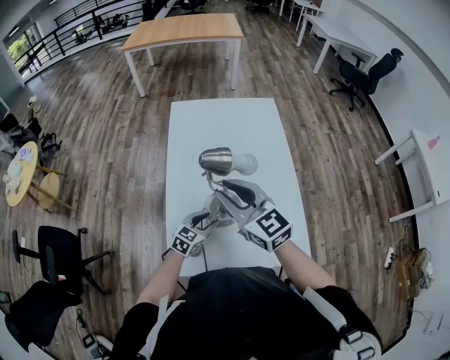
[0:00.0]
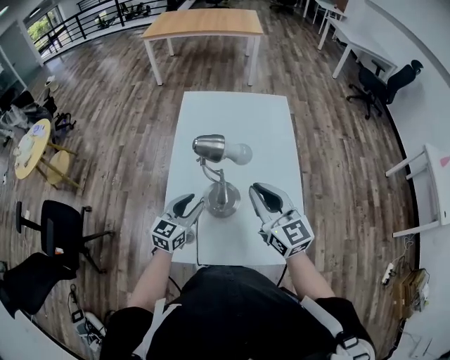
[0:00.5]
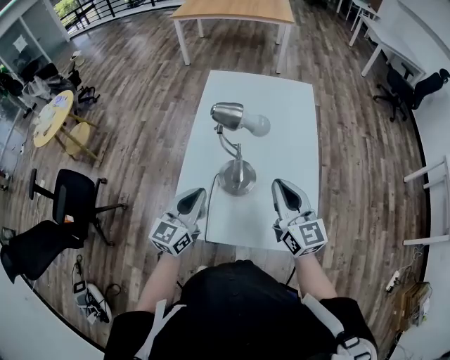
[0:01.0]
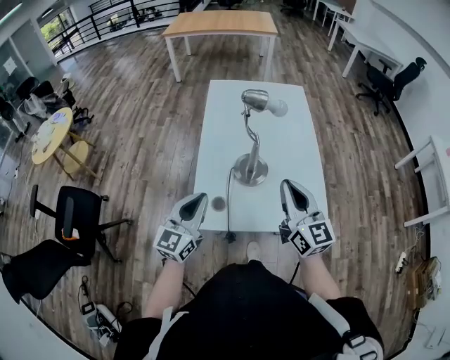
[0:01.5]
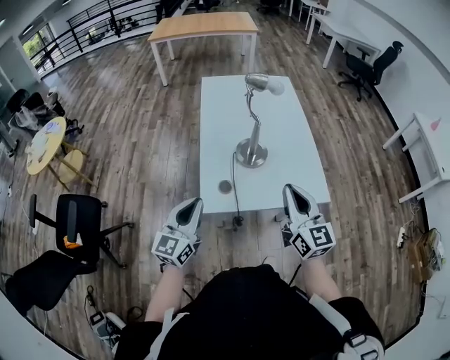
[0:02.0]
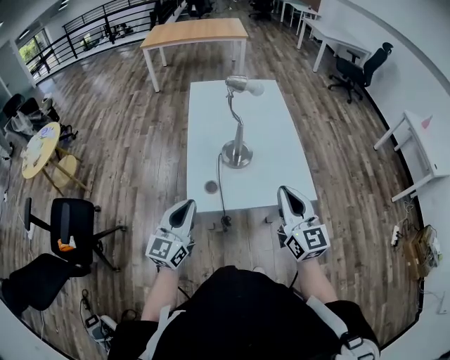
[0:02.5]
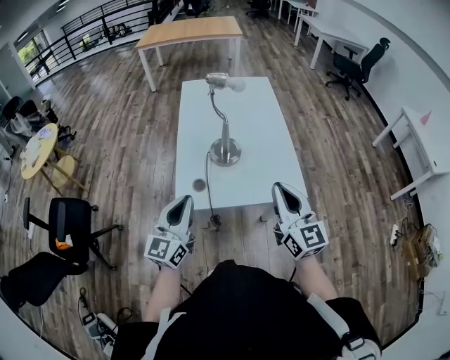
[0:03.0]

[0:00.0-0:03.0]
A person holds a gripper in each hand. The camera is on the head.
0:00.0 to 0:01.5: The left gripper goes approximately 30 cm upward, backward and to the left, tilts its fingers about 30 degrees upward, and closes. The right gripper is displaced backward and to the right by about 15 cm, turns by some 20 degrees, and closes its fingers.
0:01.5 to 0:03.0: Both grippers travel together backward, approximately 10 cm.

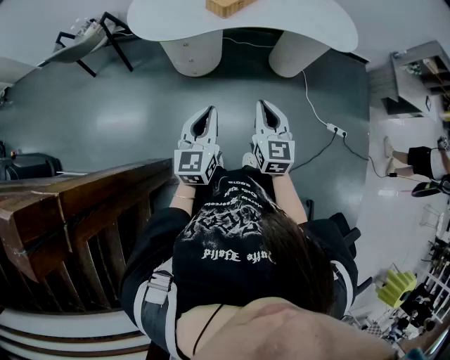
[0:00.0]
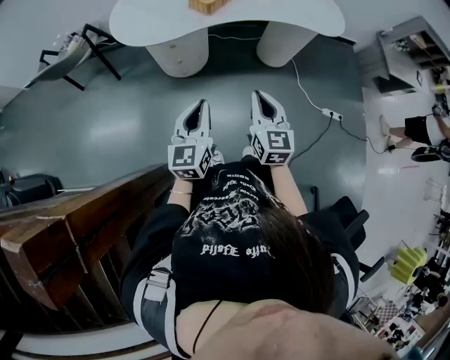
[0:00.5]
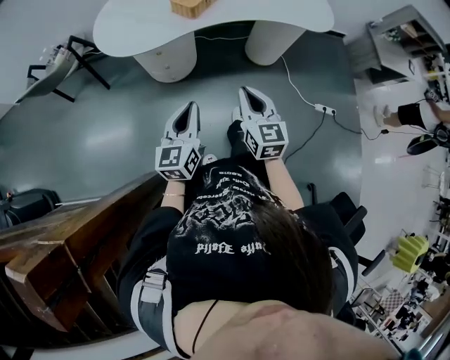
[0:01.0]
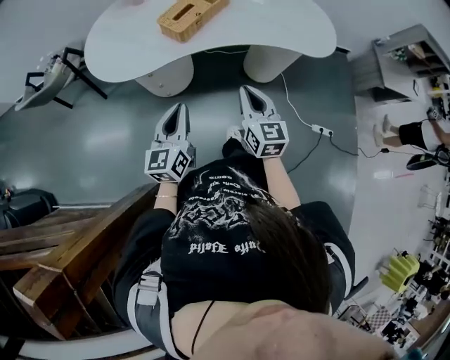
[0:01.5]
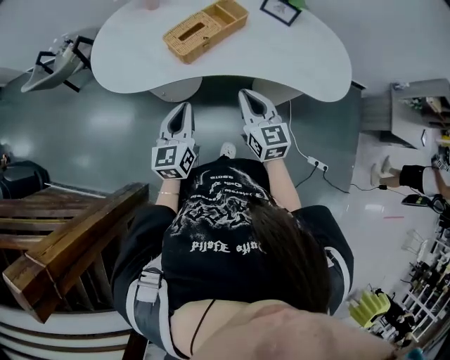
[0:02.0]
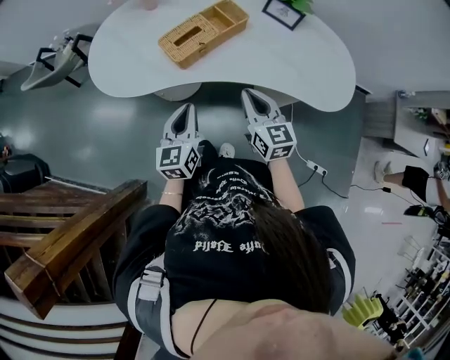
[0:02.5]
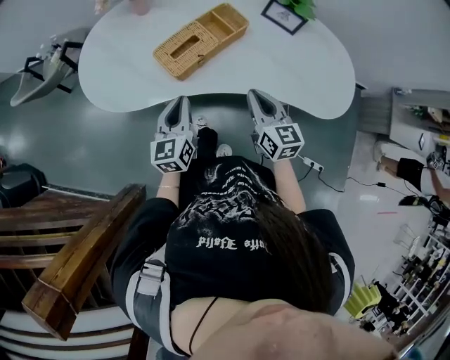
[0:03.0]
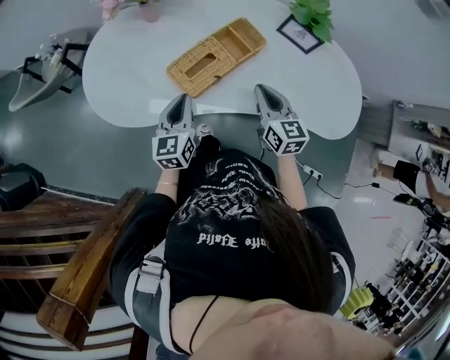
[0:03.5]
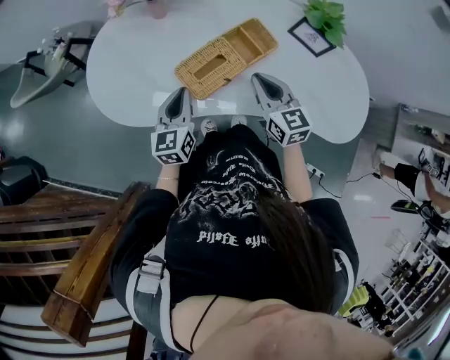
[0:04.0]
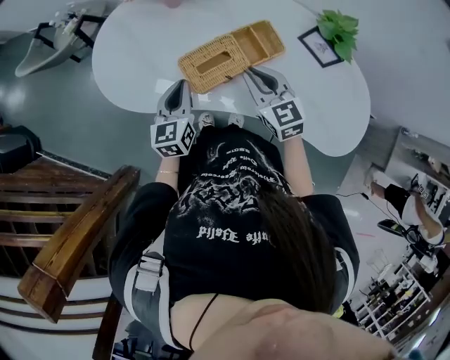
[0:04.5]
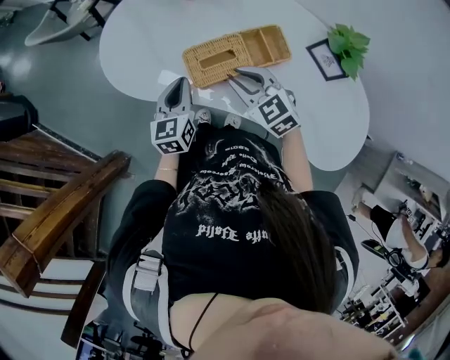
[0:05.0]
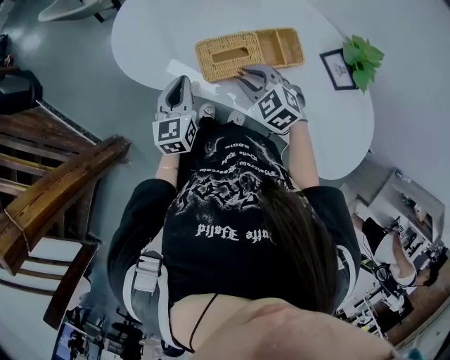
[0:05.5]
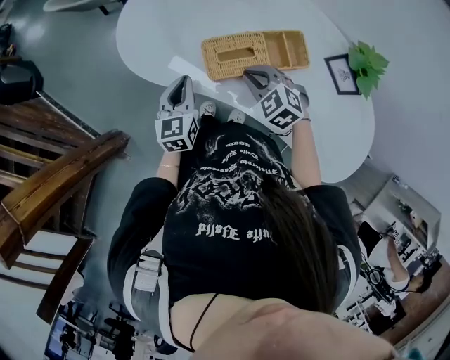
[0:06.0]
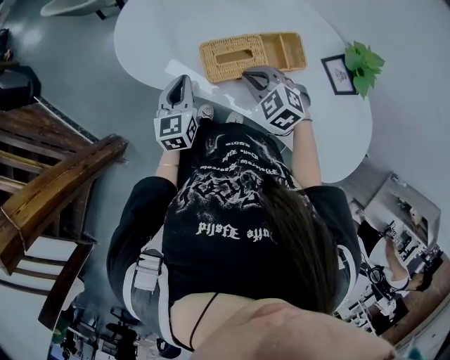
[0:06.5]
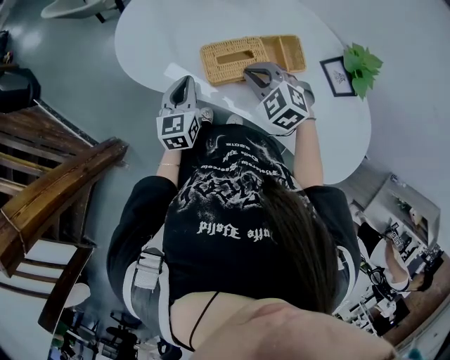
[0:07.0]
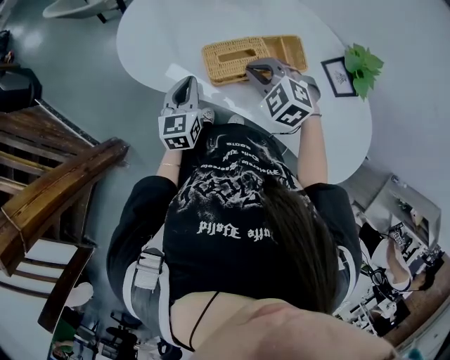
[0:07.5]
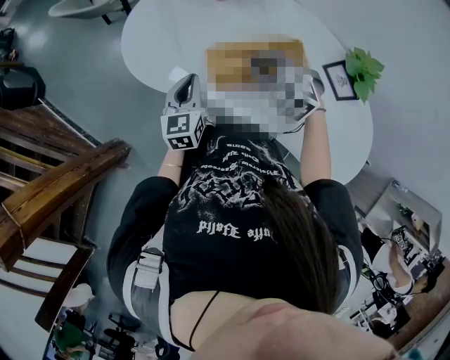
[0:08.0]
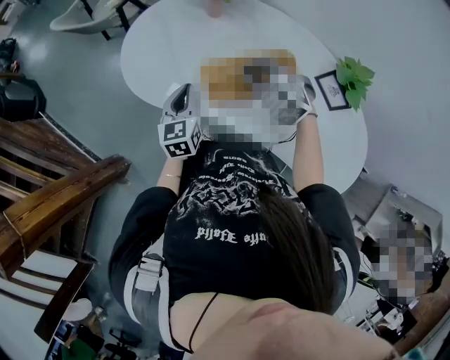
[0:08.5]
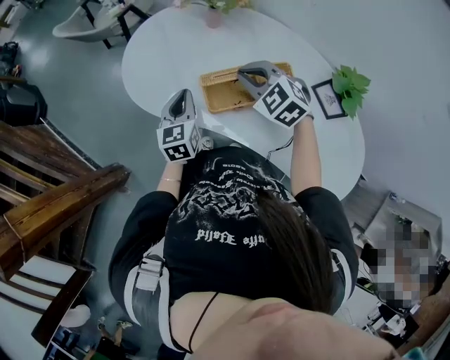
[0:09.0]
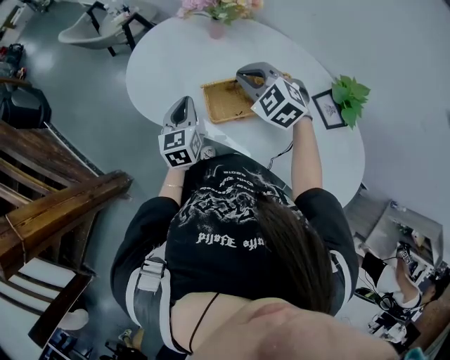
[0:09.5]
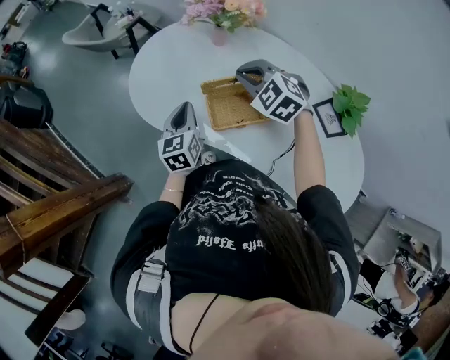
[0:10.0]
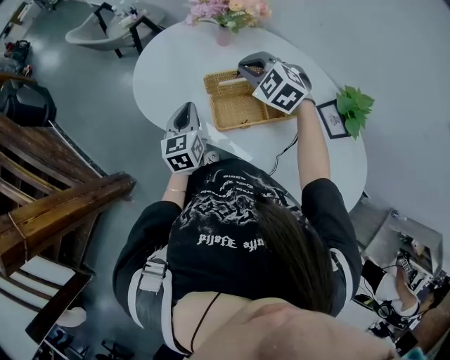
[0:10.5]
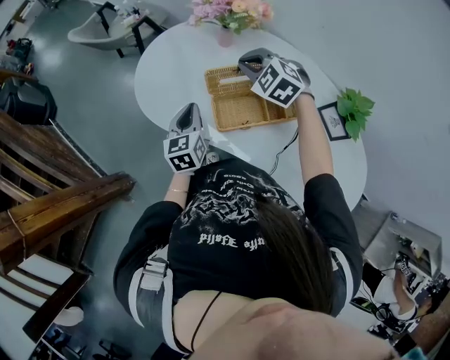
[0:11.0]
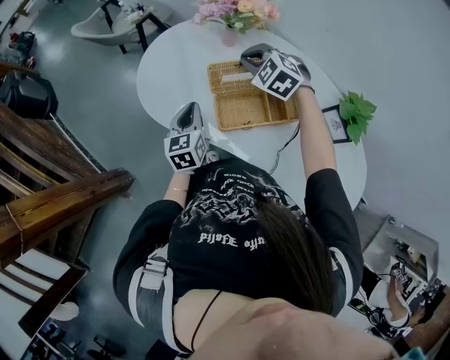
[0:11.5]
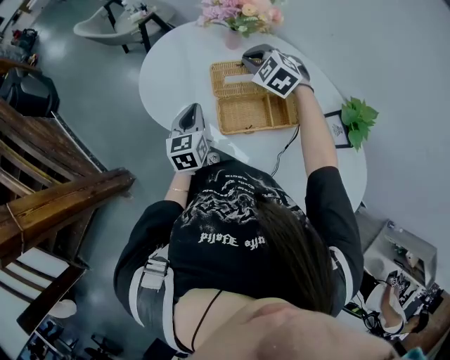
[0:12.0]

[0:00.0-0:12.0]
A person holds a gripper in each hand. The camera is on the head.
0:00.0 to 0:02.0: The two grippers go roughly 35 cm forward.
0:02.0 to 0:04.0: Both grippers travel together forward, about 25 cm.
0:04.0 to 0:06.0: The right gripper shifts by some 10 cm, and swivels some 60 degrees. The left gripper moves about 5 cm, and rotates approximately 30 degrees.
0:06.0 to 0:08.0: The right gripper goes about 10 cm upward.
0:08.0 to 0:10.0: The left gripper changes place by about 5 cm. The right gripper travels forward and upward by about 10 cm.
0:10.0 to 0:12.0: The right gripper heads forward, covering some 10 cm.

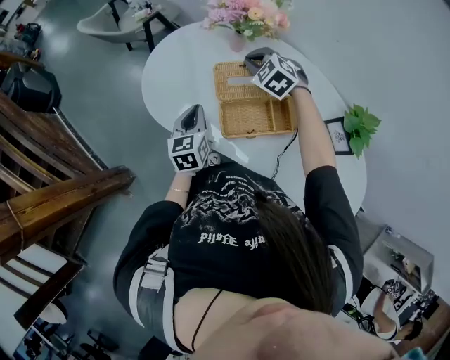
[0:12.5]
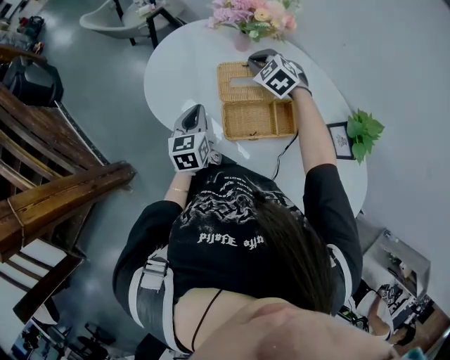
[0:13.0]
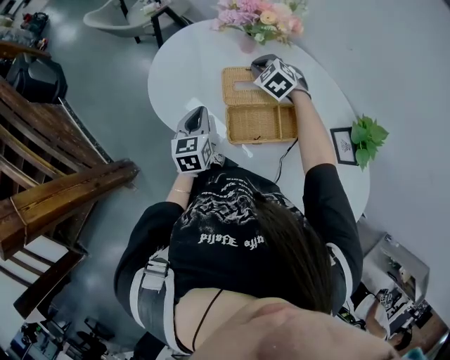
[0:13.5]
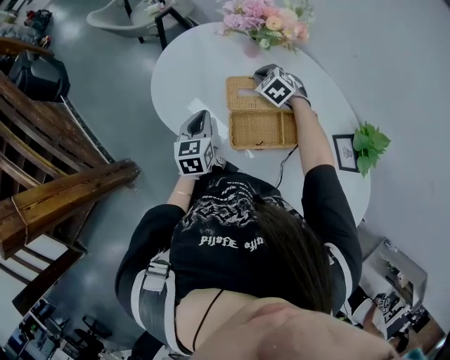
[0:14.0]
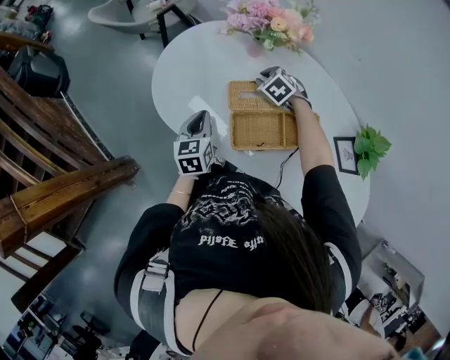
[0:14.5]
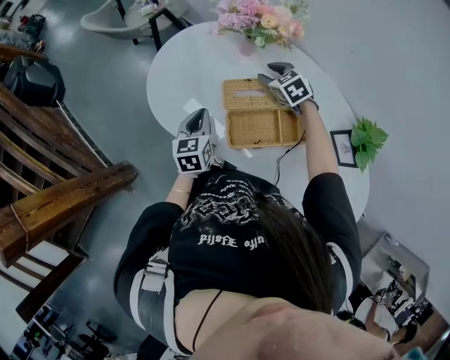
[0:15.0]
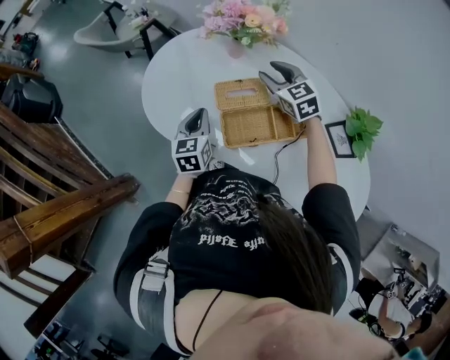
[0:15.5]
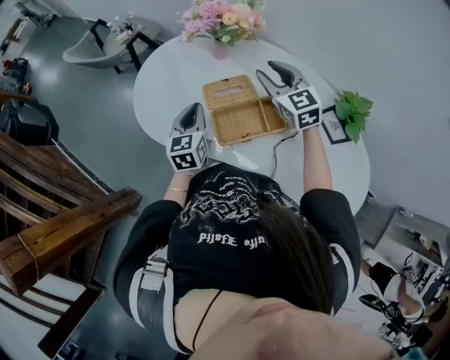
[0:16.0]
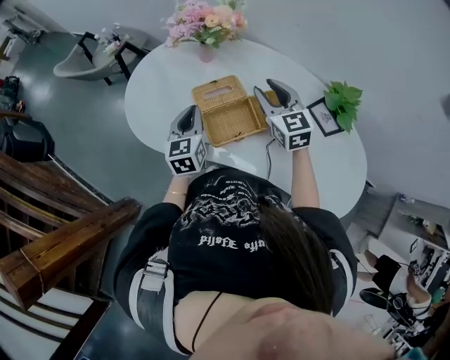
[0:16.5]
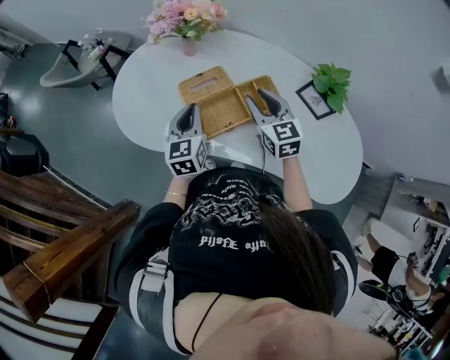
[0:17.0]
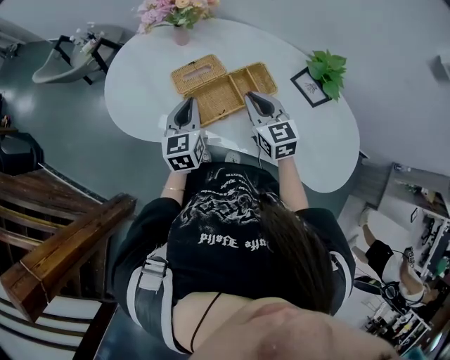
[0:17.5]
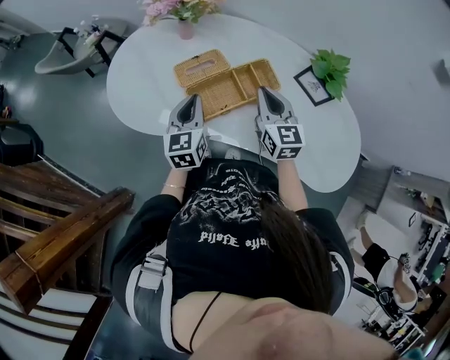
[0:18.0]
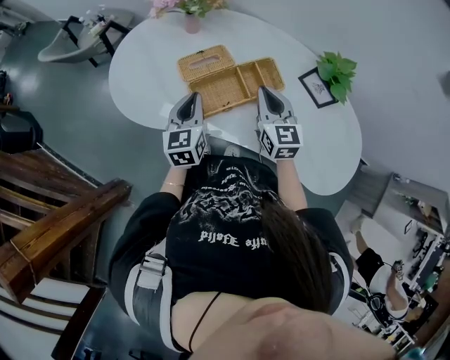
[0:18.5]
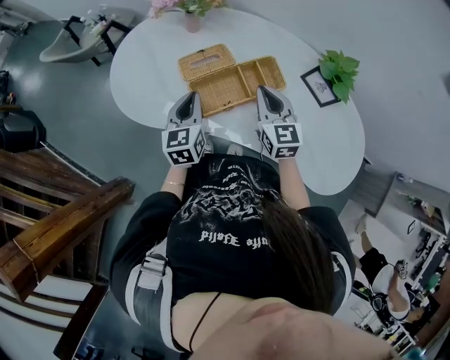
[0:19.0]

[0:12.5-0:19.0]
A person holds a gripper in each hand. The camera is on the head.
0:12.5 to 0:14.5: The right gripper is displaced downward by roughly 15 cm.
0:14.5 to 0:17.0: The right gripper goes roughly 30 cm backward, upward and to the right, and tips its fingers upward by about 40 degrees. Meanwhile the left gripper heads to the right and upward, covering roughly 10 cm, and turns by roughly 20 degrees.
0:17.0 to 0:19.0: The right gripper closes.

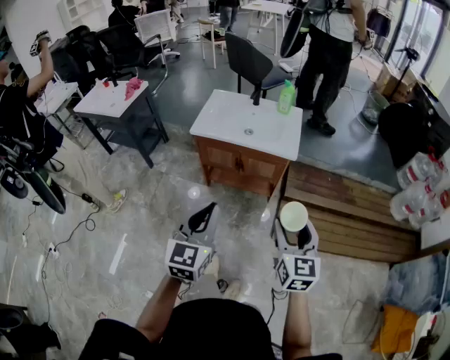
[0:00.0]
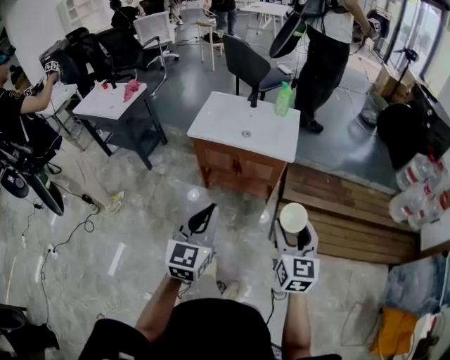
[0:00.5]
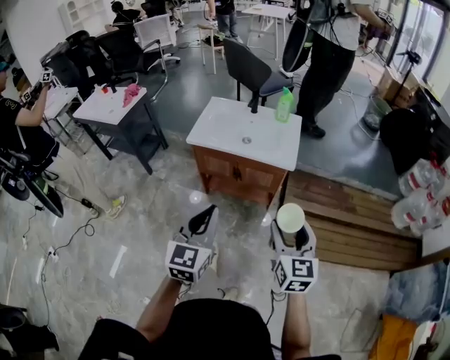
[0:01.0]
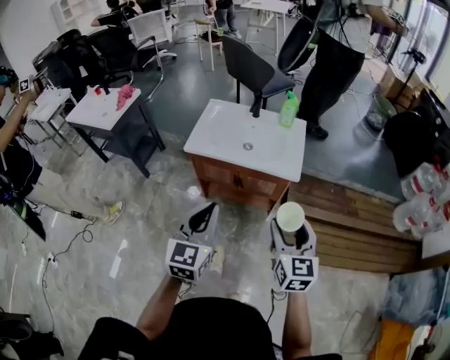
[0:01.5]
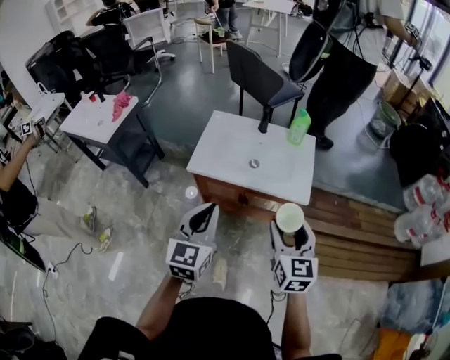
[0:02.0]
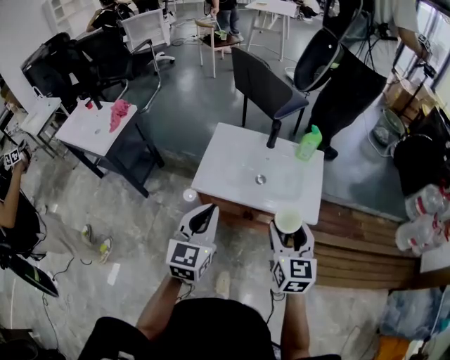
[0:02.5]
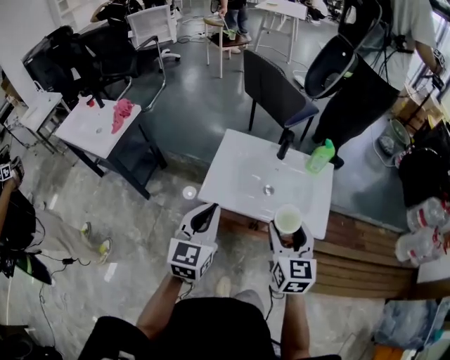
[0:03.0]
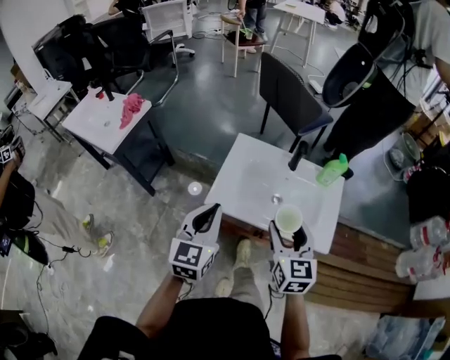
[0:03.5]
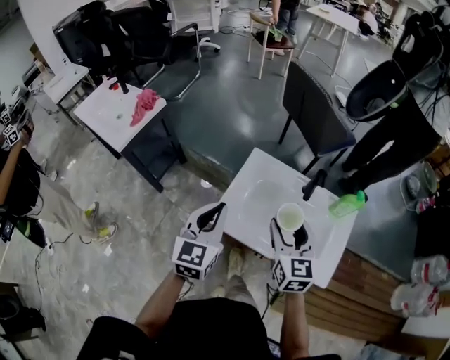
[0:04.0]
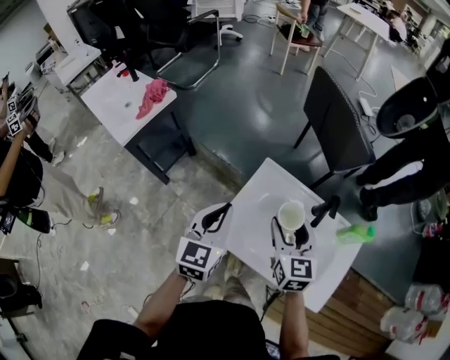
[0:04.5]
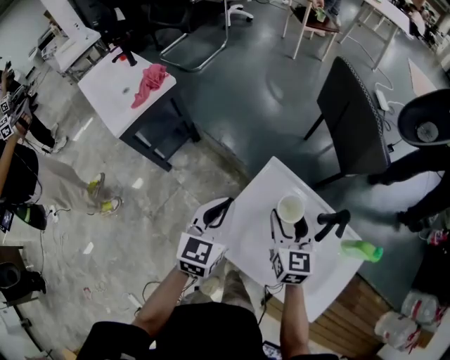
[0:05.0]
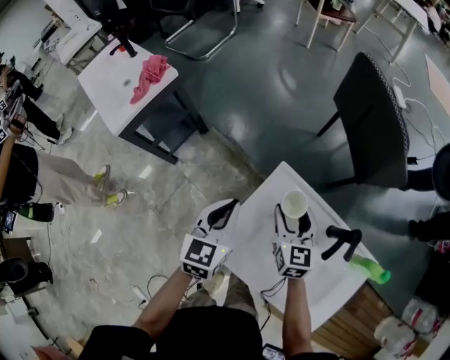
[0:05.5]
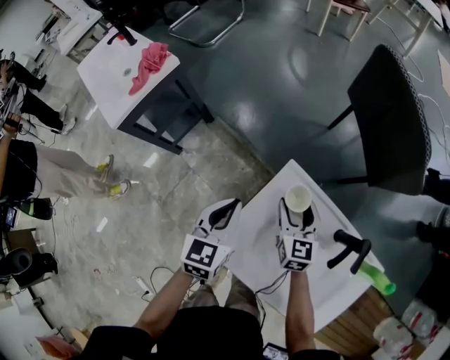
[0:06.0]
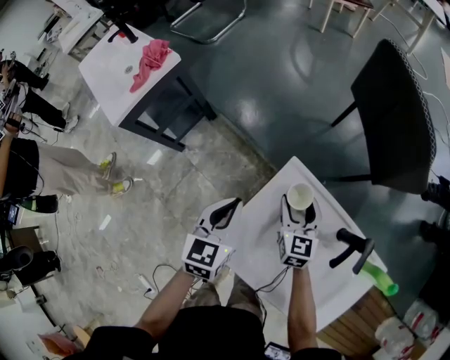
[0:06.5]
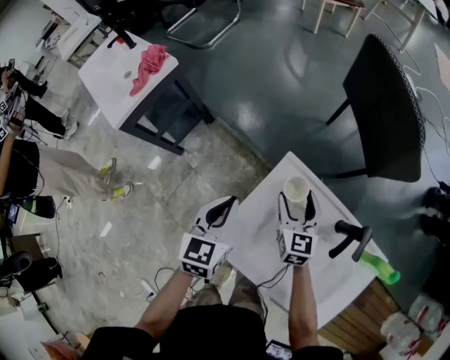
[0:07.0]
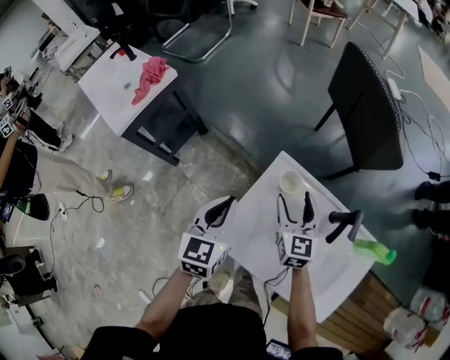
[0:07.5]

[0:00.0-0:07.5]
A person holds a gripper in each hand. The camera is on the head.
0:00.0 to 0:02.0: Both grippers travel together forward, roughly 25 cm.
0:02.0 to 0:04.0: Both grippers move forward and to the left, some 35 cm.
0:04.0 to 0:05.5: Both grippers travel together forward and downward, roughly 25 cm.
0:05.5 to 0:07.5: The right gripper goes downward and returns, about 10 cm each way.
